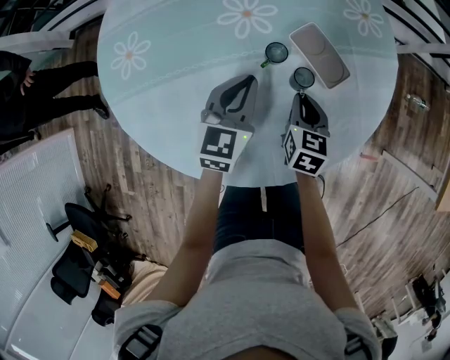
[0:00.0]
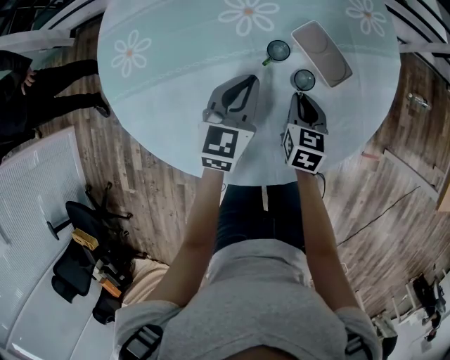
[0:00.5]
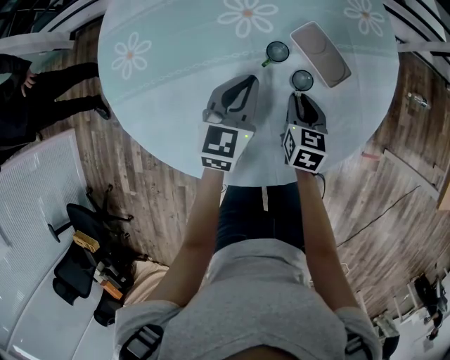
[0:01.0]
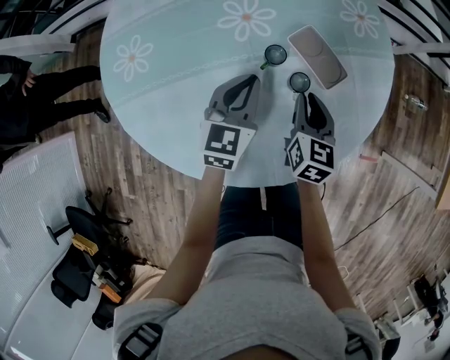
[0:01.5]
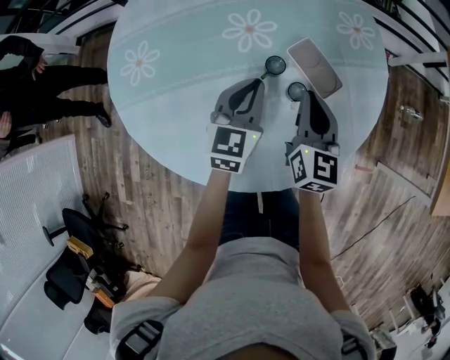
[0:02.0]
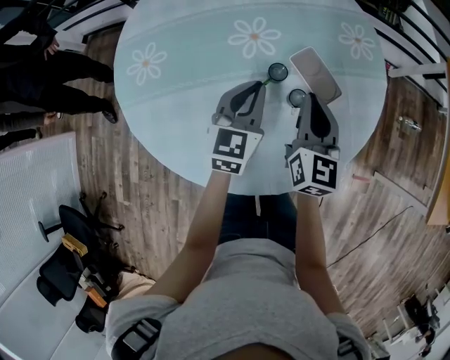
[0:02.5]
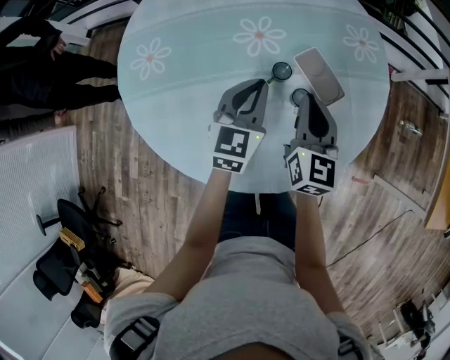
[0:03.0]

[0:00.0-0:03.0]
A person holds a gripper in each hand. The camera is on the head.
0:00.0 to 0:01.5: The right gripper is displaced upward by roughly 5 cm.
0:01.5 to 0:03.0: The right gripper goes about 10 cm upward.

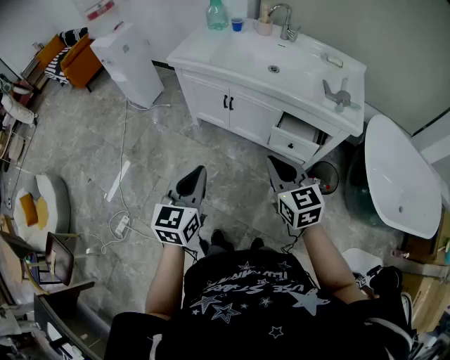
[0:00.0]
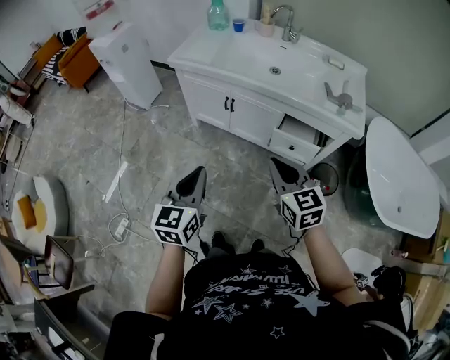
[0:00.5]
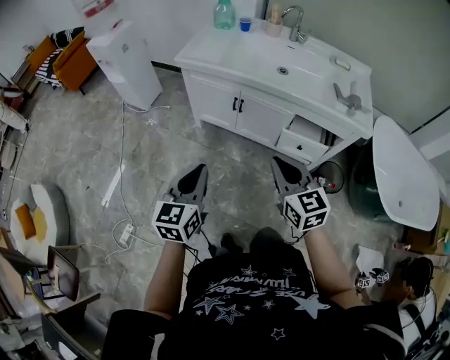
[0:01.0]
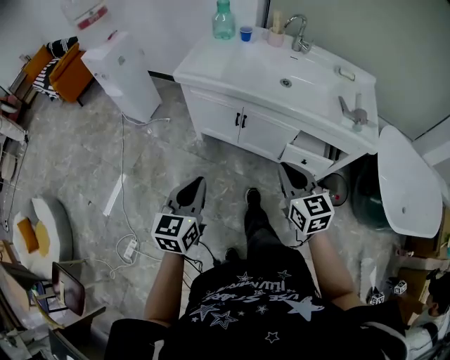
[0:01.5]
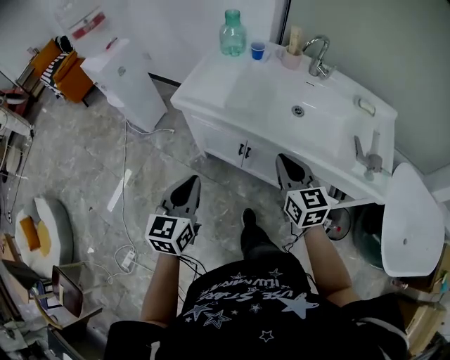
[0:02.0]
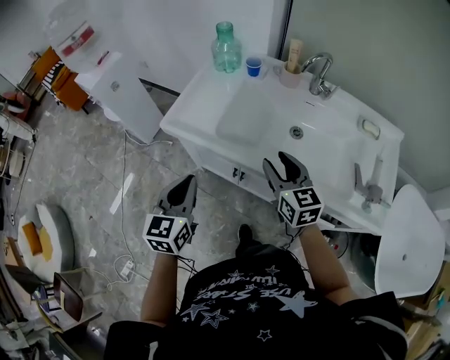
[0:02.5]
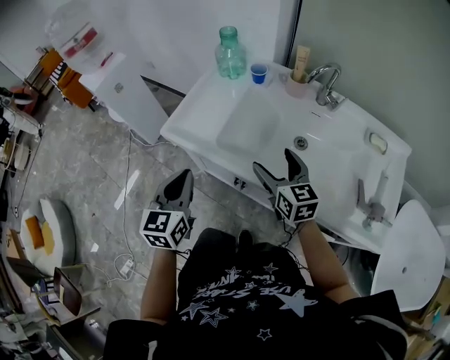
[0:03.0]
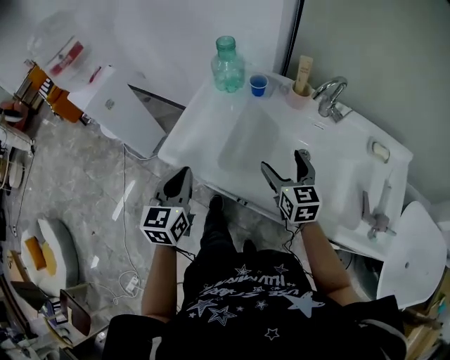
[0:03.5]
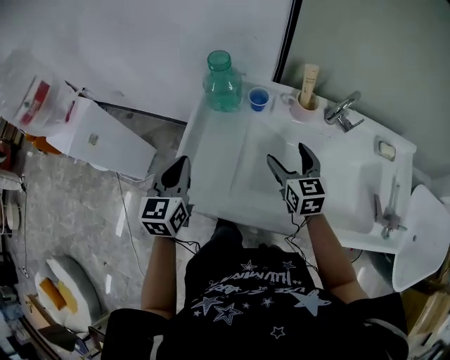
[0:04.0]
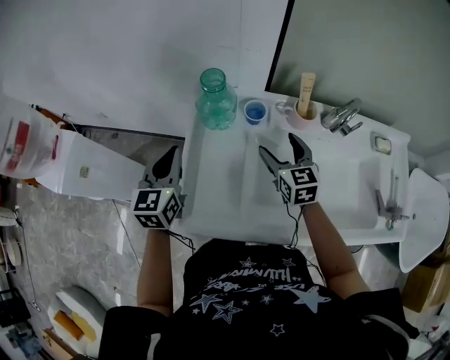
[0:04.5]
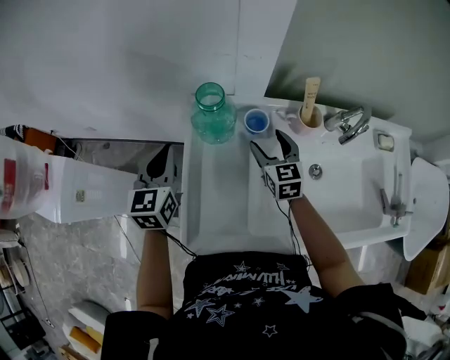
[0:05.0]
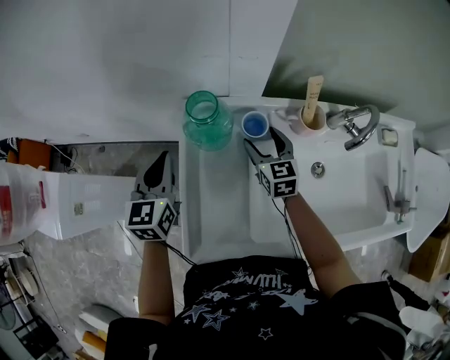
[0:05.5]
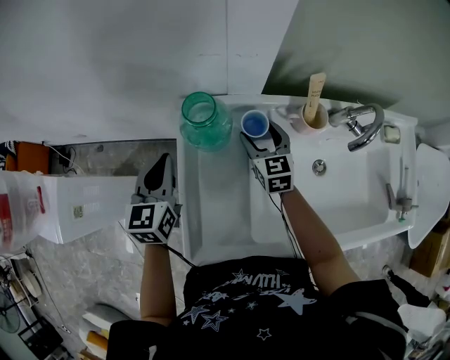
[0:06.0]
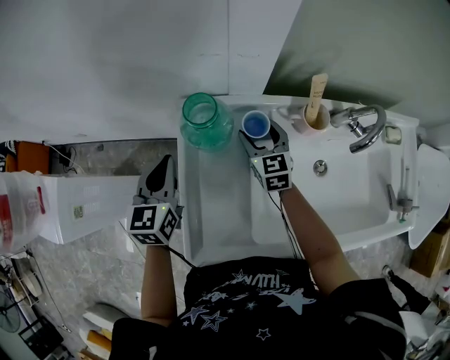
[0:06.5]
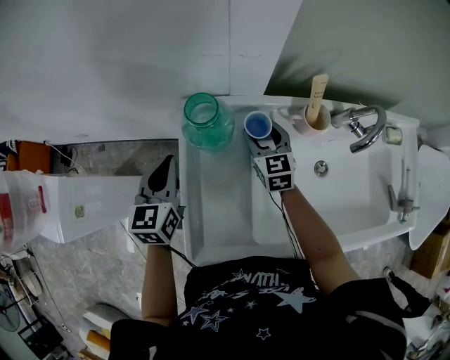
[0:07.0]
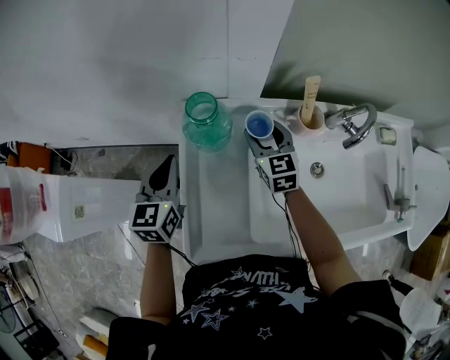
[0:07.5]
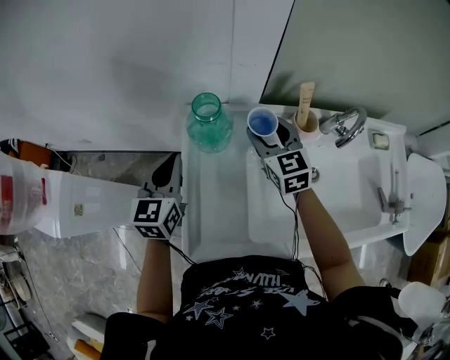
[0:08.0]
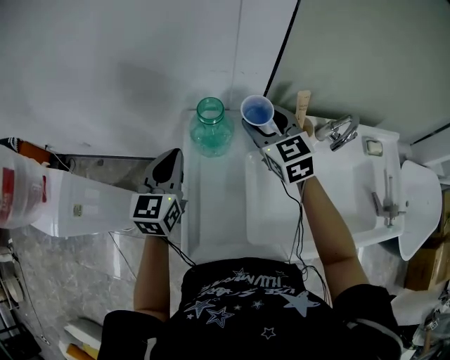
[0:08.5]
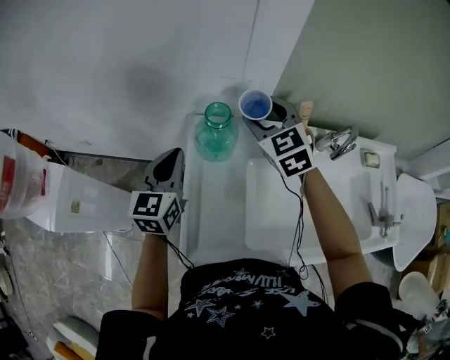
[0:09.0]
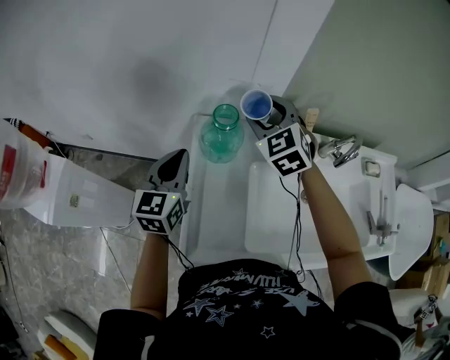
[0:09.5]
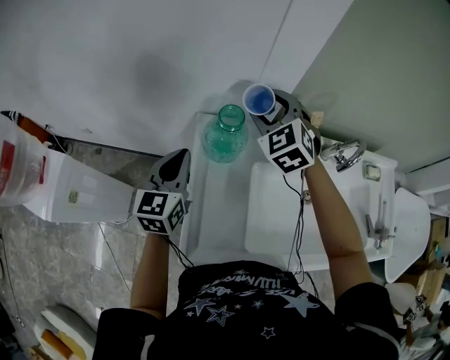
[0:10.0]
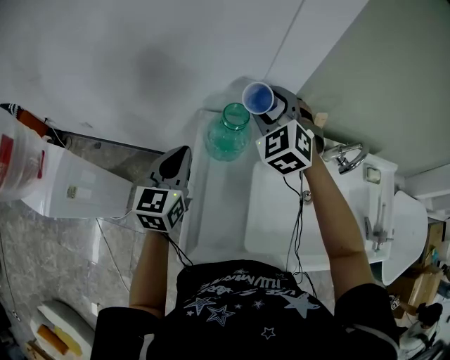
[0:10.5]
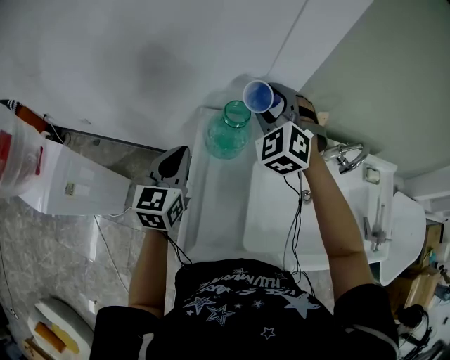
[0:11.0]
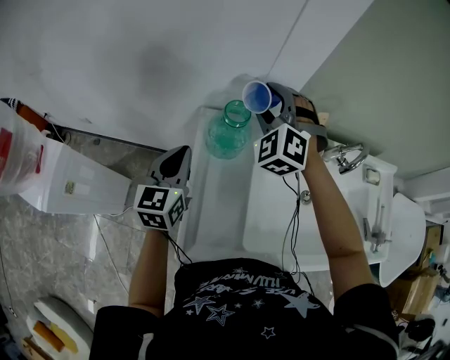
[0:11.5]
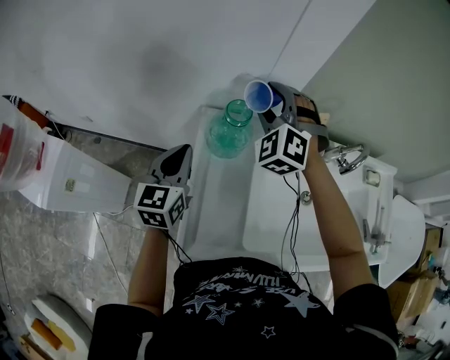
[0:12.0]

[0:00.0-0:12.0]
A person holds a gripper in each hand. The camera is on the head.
0:00.0 to 0:02.0: The two grippers go approximately 30 cm forward.
0:02.0 to 0:04.0: The grippers both shift forward by approximately 40 cm. The right gripper opens up.
0:04.0 to 0:06.0: The left gripper shifts roughly 20 cm forward. The right gripper goes some 20 cm forward, downward and to the left.
0:06.0 to 0:08.0: The right gripper goes some 10 cm upward.
0:08.0 to 0:10.0: The right gripper is displaced upward, to the left and forward by some 15 cm, and rotates some 40 degrees.
0:10.0 to 0:12.0: The right gripper rotates some 30 degrees.

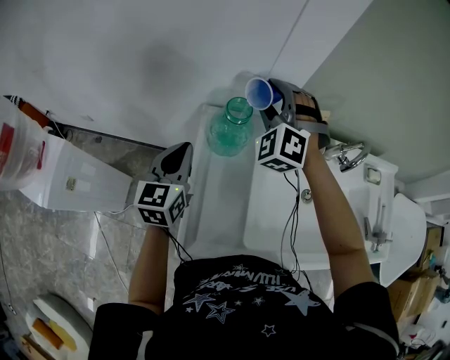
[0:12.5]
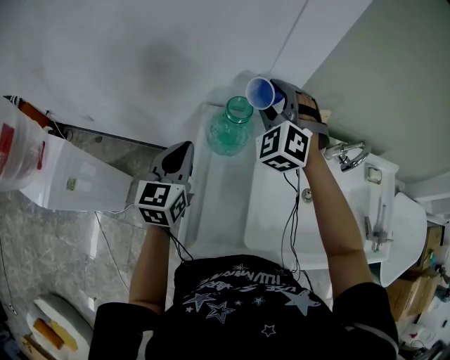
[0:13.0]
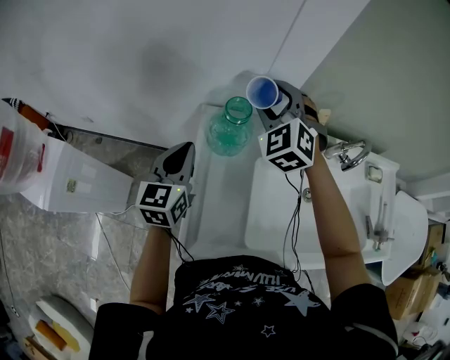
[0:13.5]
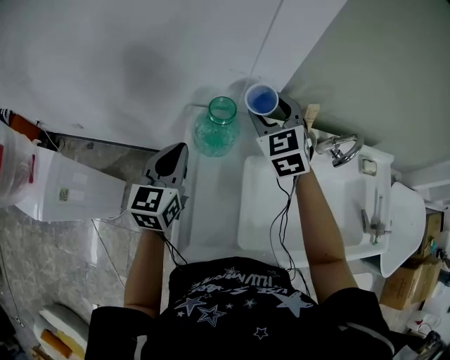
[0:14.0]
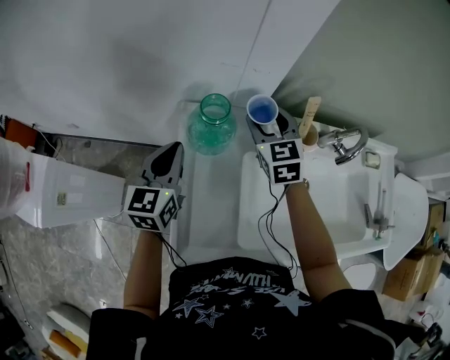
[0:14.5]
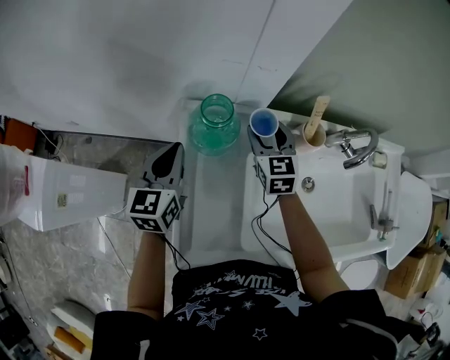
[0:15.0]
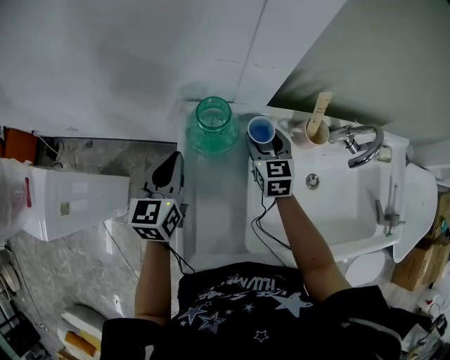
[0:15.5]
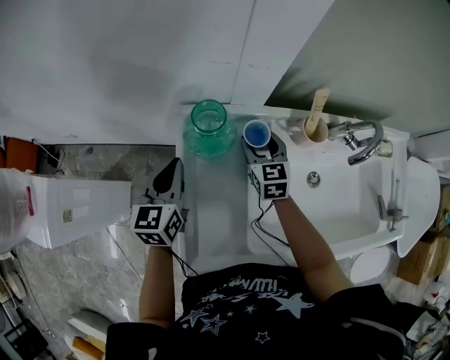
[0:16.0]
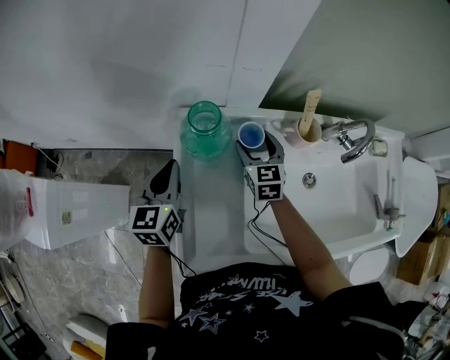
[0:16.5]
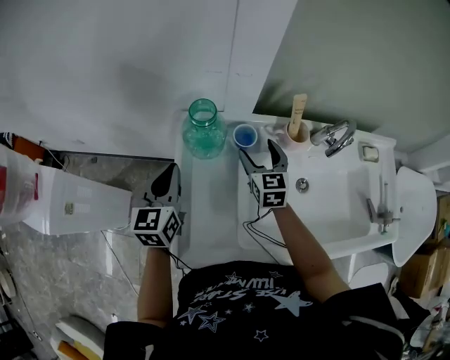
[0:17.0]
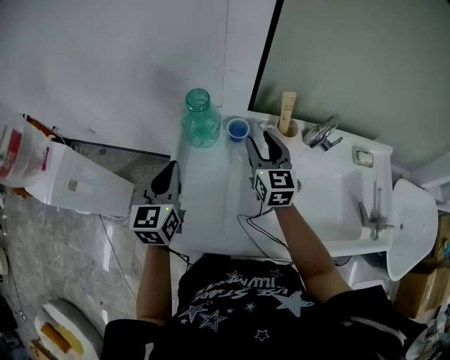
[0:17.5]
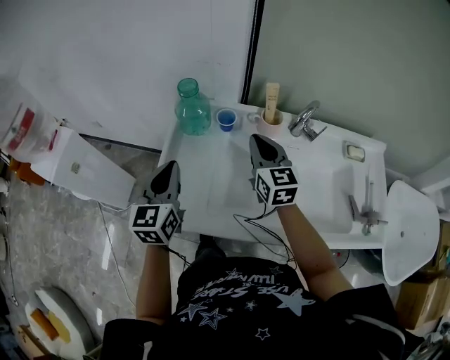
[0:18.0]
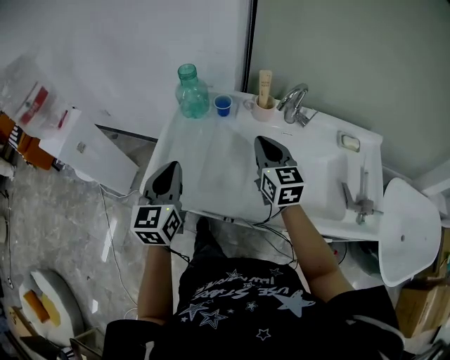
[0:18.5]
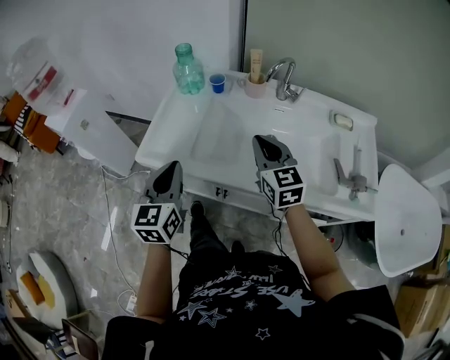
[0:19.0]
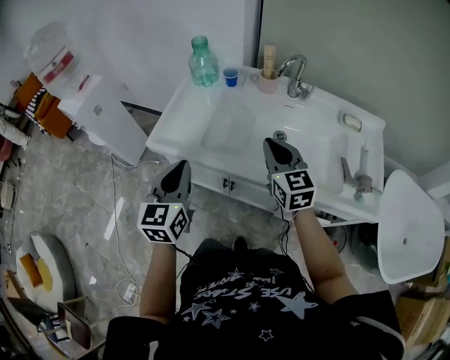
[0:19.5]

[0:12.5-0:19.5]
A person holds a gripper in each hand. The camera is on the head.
0:12.5 to 0:14.5: The right gripper goes some 10 cm downward and to the right, and rolls clockwise, seen from behind, by some 60 degrees.
0:14.5 to 0:16.0: The right gripper heads downward, covering roughly 15 cm. Meanwhile the left gripper goes approximately 5 cm downward.
0:16.0 to 0:17.5: The right gripper moves upward and backward, some 15 cm; the left gripper moves backward and upward, some 15 cm.
0:17.5 to 0:19.5: Both grippers travel together backward, about 35 cm. The right gripper closes its fingers.

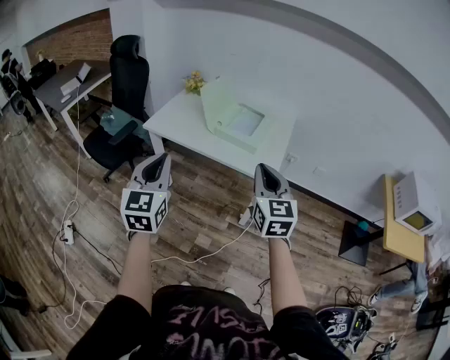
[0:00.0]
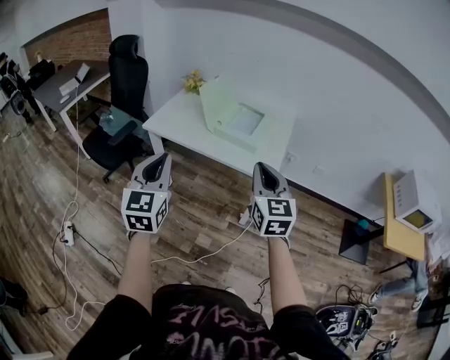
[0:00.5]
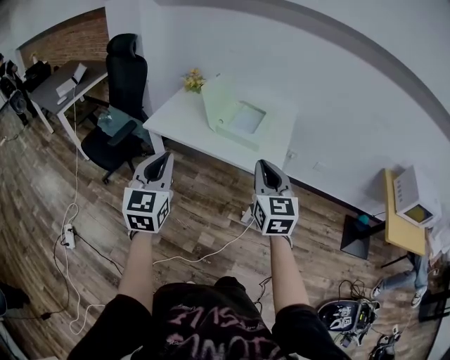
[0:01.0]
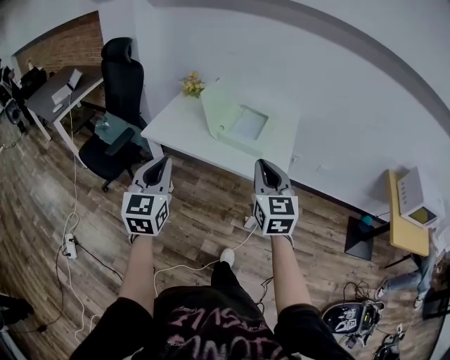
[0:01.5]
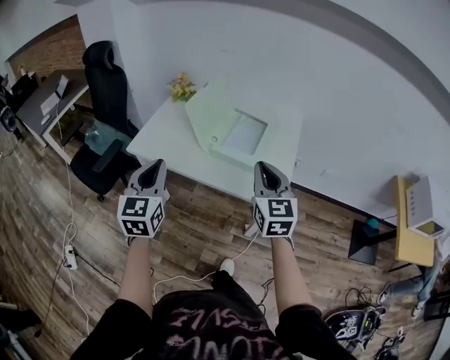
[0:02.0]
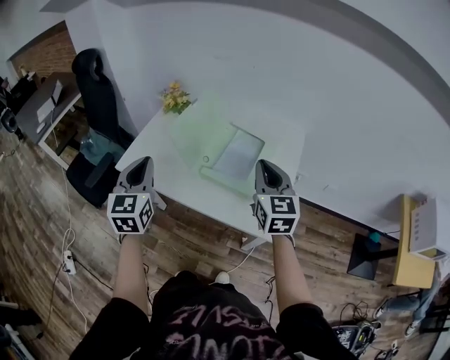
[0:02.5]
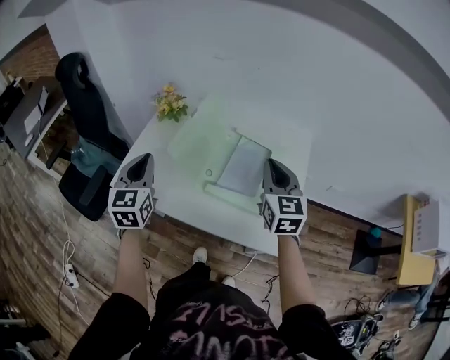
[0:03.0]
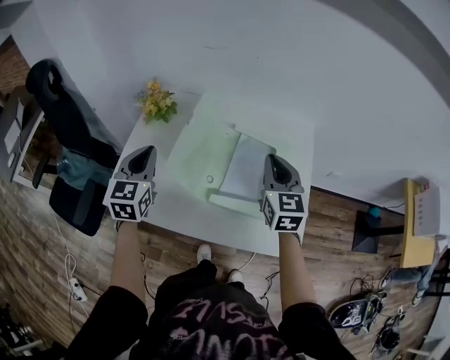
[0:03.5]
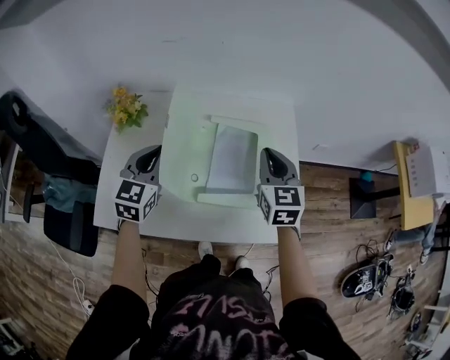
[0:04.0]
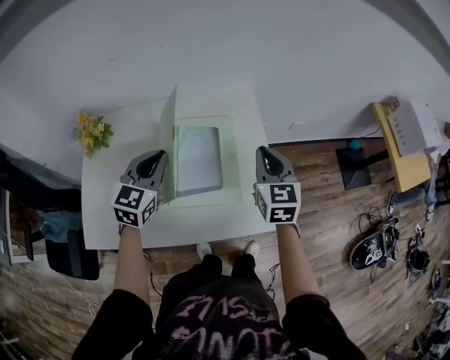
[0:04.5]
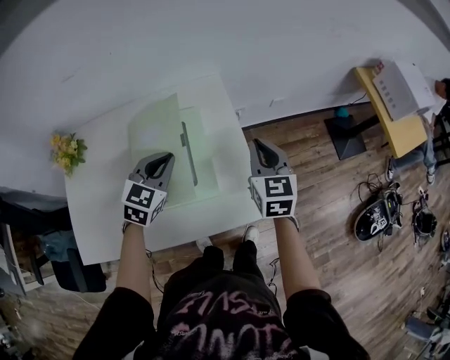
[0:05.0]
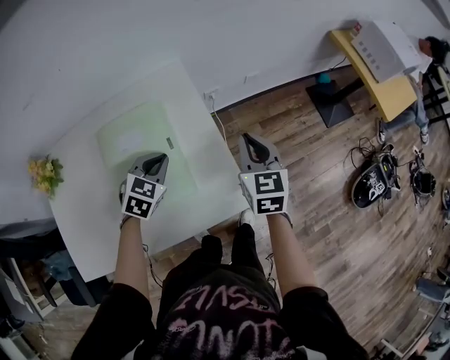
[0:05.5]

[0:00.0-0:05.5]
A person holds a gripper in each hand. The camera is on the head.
0:00.0 to 0:02.0: The grippers both shift forward by some 20 cm.
0:02.0 to 0:03.5: Both grippers move forward, approximately 35 cm.
0:03.5 to 0:05.5: The left gripper changes place by approximately 40 cm, and turns by some 60 degrees. Meanwhile the right gripper shifts by roughly 30 cm, and rotates about 30 degrees.
